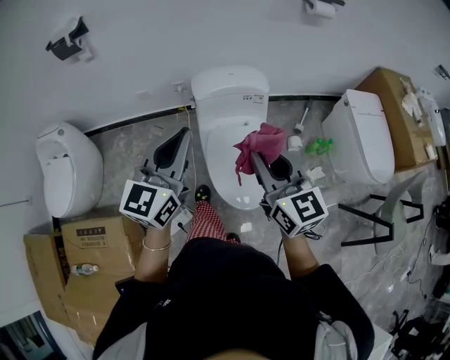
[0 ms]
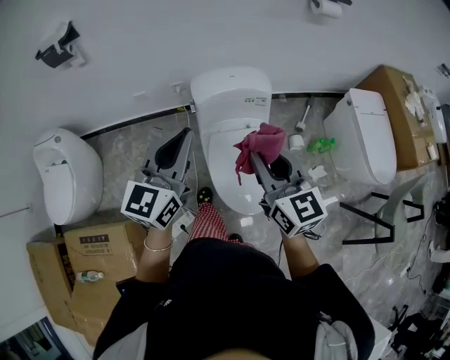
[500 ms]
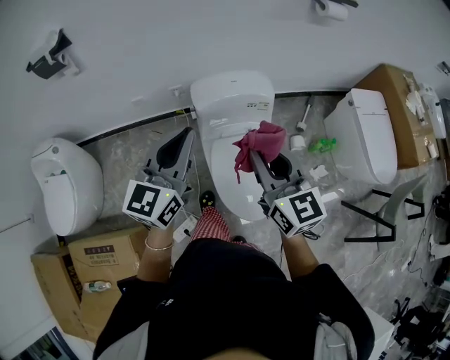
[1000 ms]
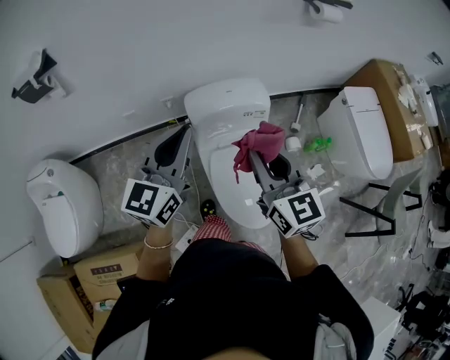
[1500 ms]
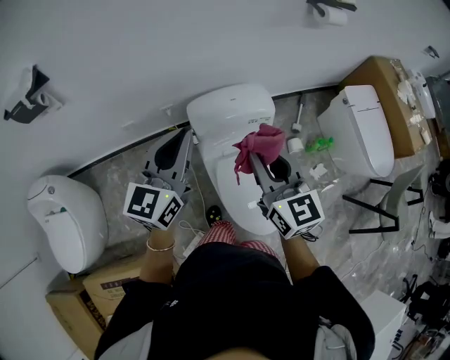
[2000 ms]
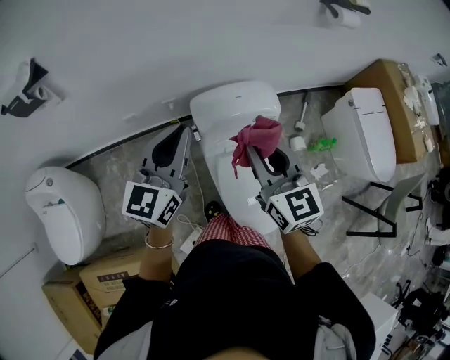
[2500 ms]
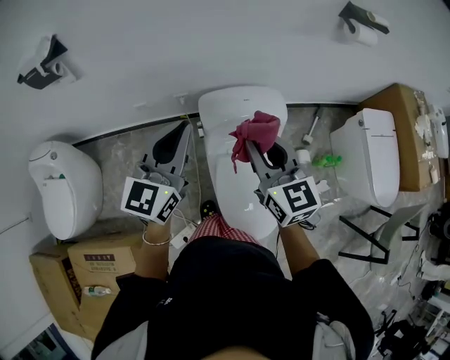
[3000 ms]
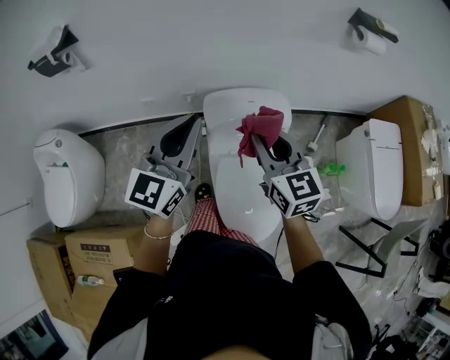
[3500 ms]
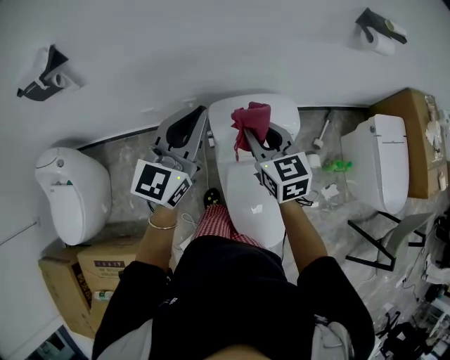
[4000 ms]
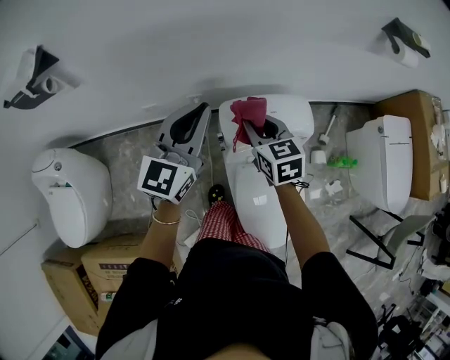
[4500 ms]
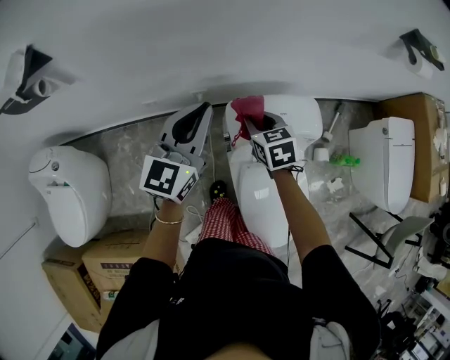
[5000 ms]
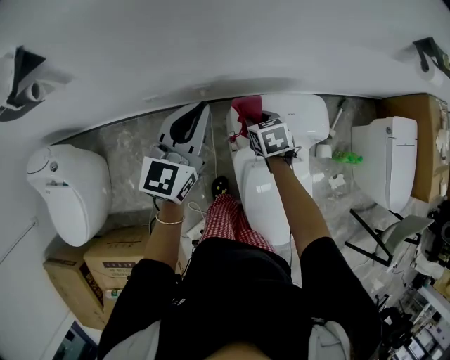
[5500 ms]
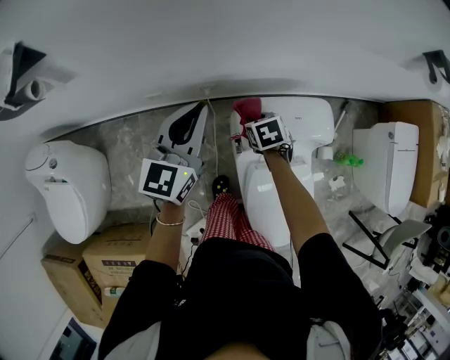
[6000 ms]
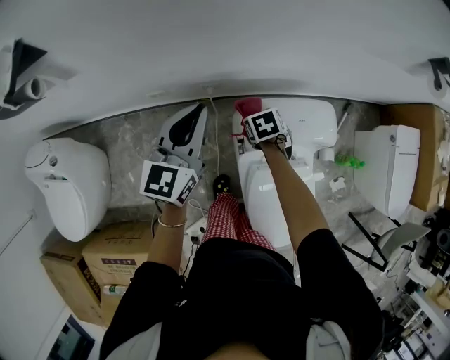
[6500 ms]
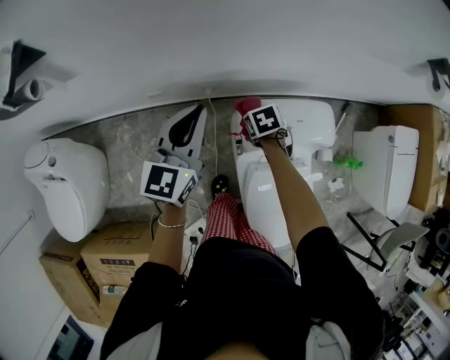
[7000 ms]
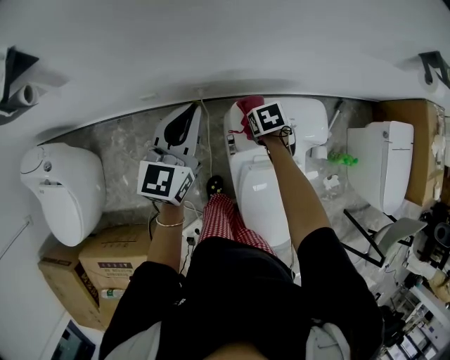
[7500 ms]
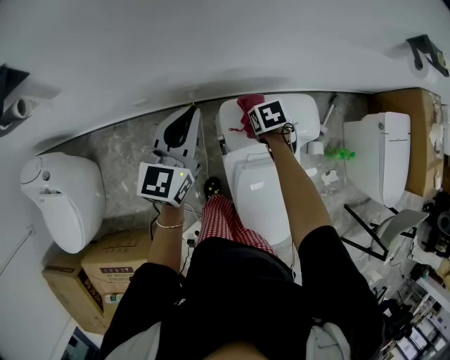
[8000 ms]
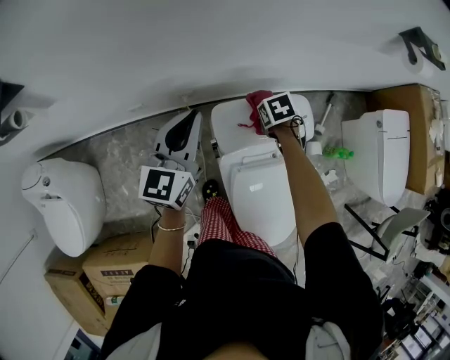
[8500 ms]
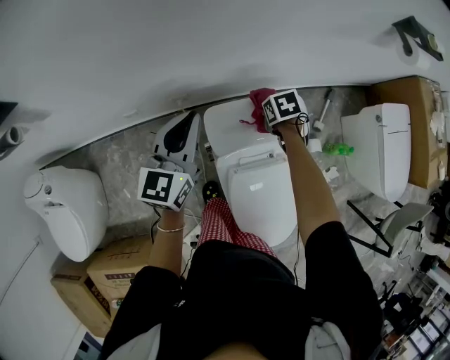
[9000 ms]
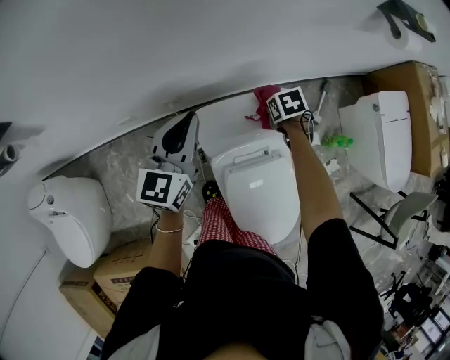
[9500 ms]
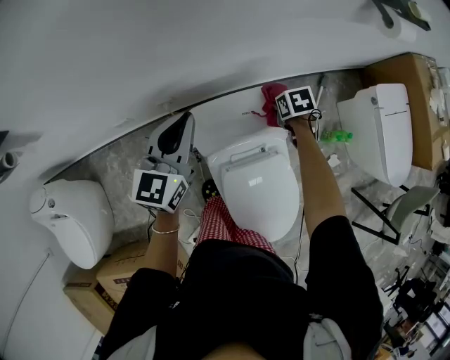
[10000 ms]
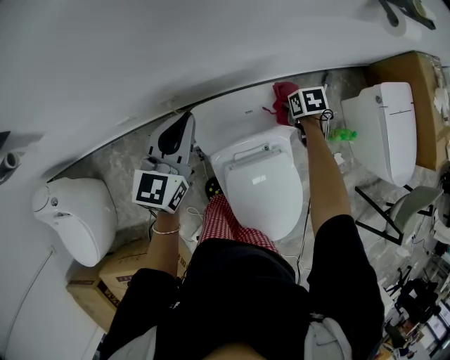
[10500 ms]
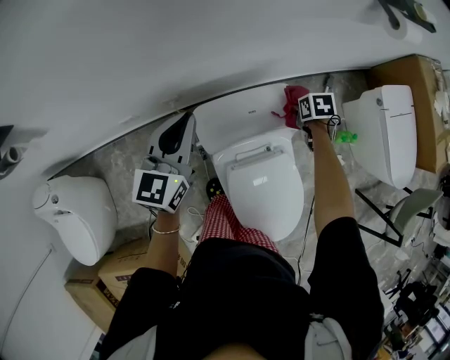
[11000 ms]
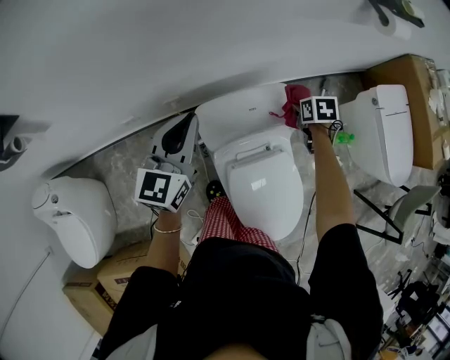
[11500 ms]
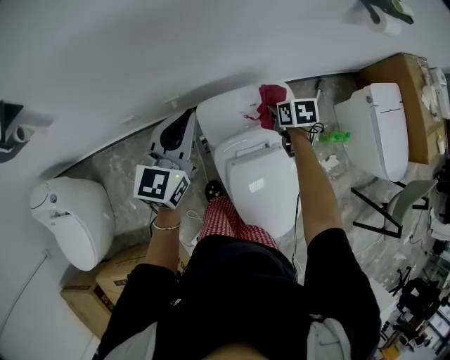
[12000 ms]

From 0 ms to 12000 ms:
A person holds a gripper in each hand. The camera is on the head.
From 0 ms to 2000 ms: The left gripper moves forward, roughly 20 cm. Meanwhile the right gripper moves forward and to the left, about 20 cm.
From 2000 ms to 4000 ms: The left gripper is displaced forward by some 10 cm; the right gripper shifts approximately 15 cm forward and downward.
From 4000 ms to 6000 ms: The right gripper travels downward and forward by about 30 cm, and angles its fingers downward, by some 40 degrees. Meanwhile the left gripper shifts approximately 20 cm downward, to the left and forward.
From 6000 ms to 8000 ms: The right gripper moves to the right, approximately 5 cm.
From 8000 ms to 10000 ms: The right gripper moves some 20 cm. Meanwhile the left gripper shifts by about 10 cm.
From 10000 ms to 12000 ms: The left gripper changes place by some 5 cm. The right gripper shifts about 10 cm upward and to the left.

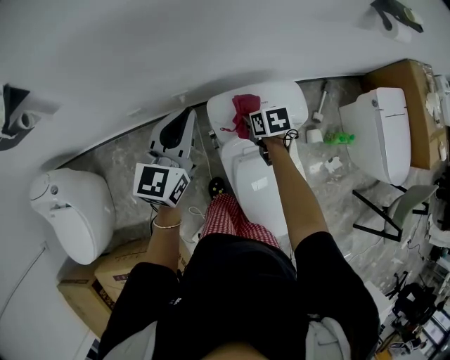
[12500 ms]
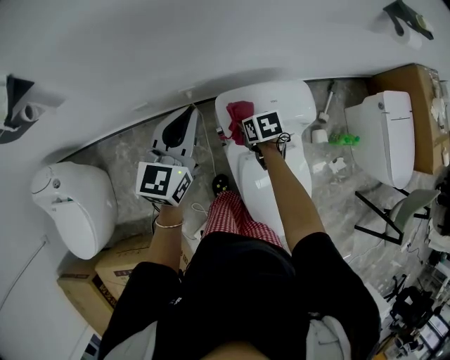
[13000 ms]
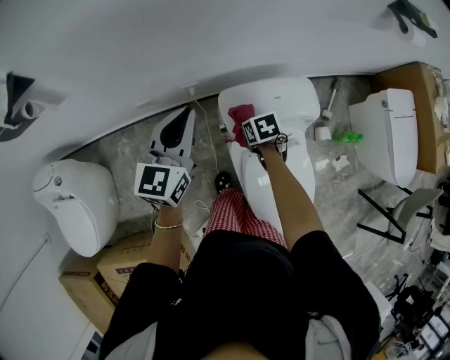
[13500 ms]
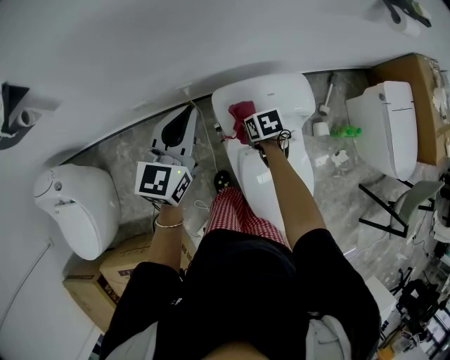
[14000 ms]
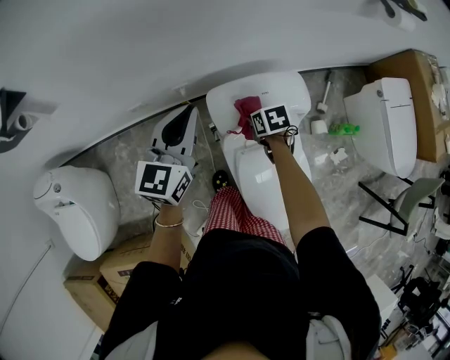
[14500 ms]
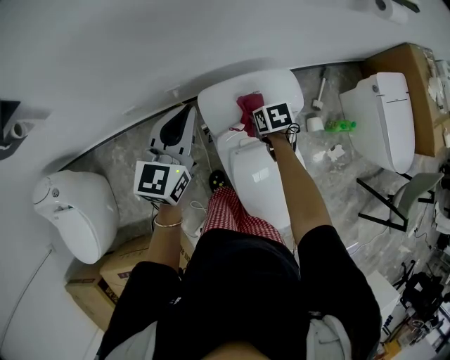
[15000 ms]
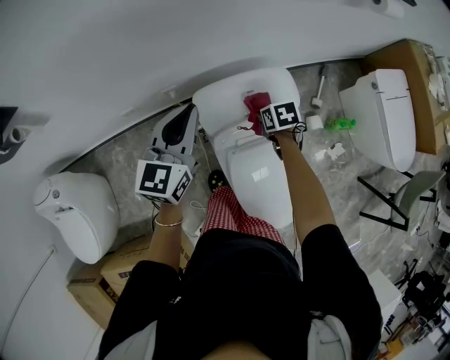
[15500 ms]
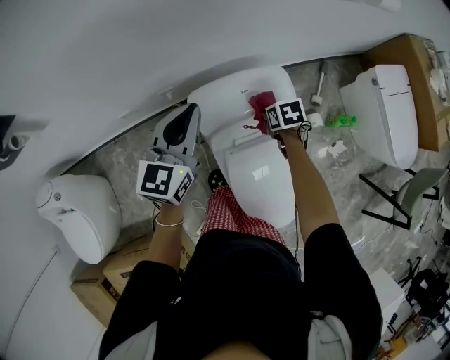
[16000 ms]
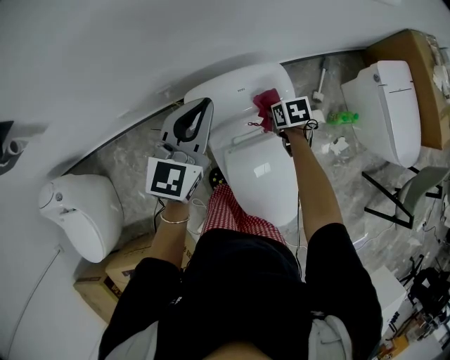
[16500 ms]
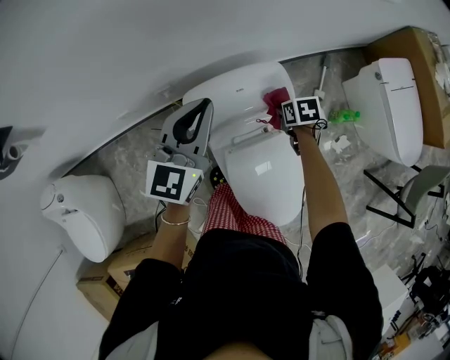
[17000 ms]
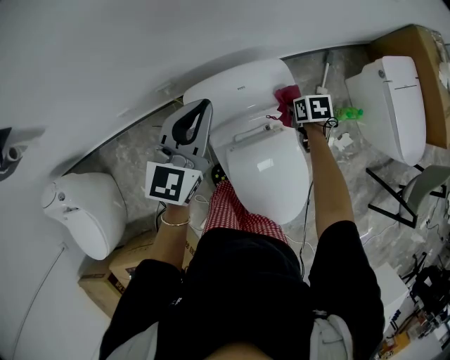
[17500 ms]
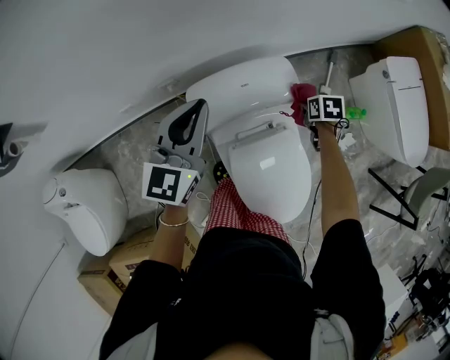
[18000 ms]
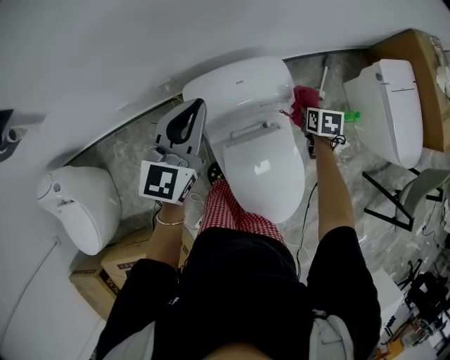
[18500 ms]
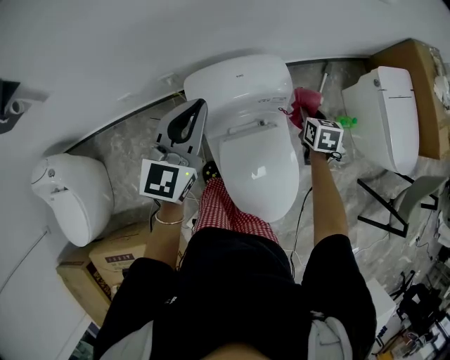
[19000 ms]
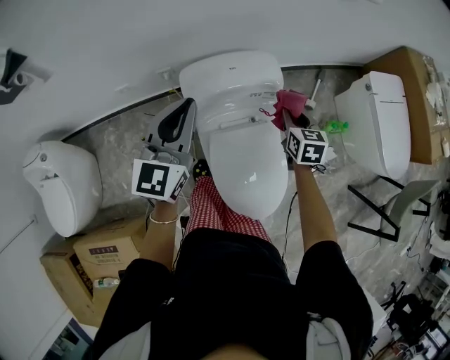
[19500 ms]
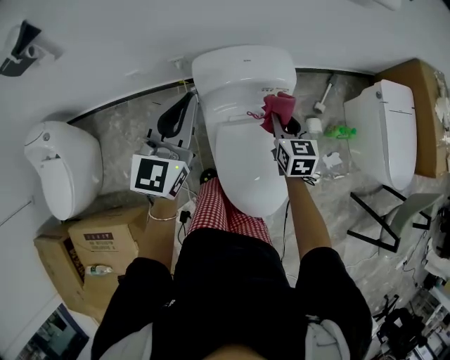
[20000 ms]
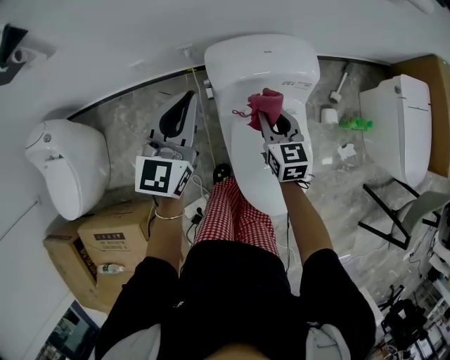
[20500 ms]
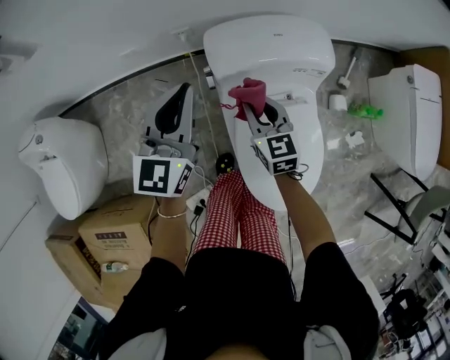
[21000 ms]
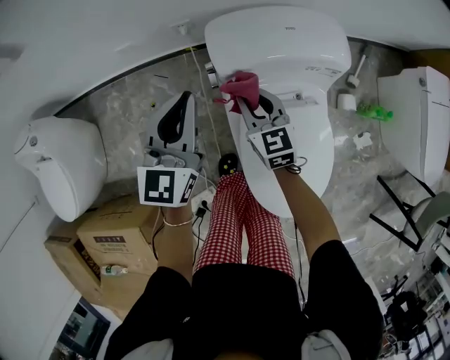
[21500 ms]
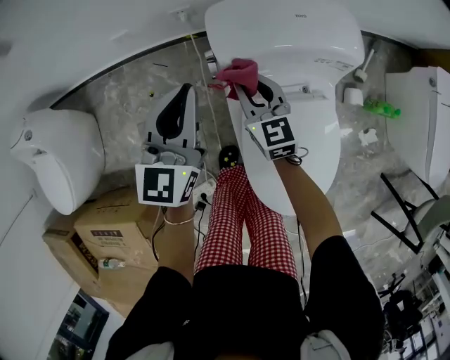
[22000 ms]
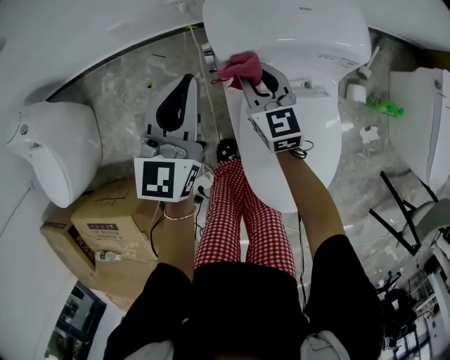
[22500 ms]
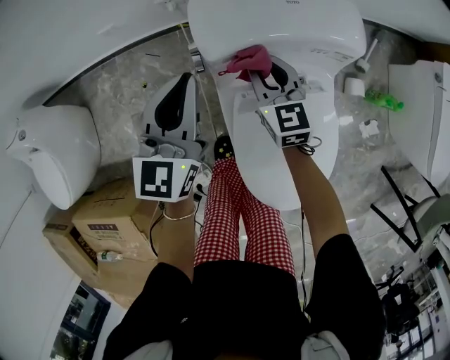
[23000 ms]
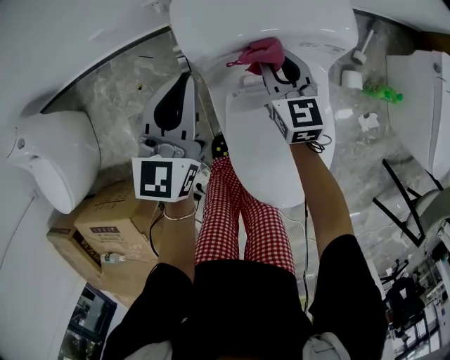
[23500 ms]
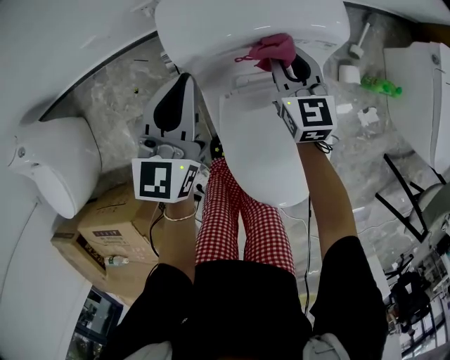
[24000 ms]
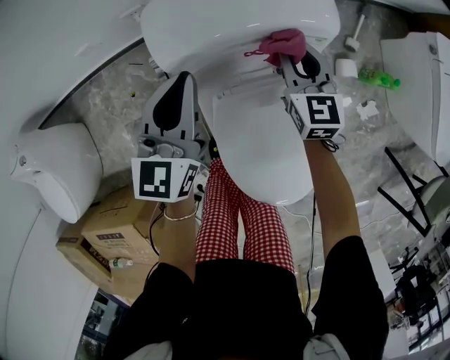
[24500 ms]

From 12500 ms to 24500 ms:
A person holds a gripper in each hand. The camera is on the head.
From 12500 ms to 14500 ms: The right gripper travels downward by roughly 5 cm.
From 14500 ms to 16500 ms: Both grippers move to the right, about 15 cm.
From 16500 ms to 18500 ms: The right gripper travels to the right by some 10 cm.
From 18500 ms to 20500 ms: The left gripper moves backward and to the left, roughly 15 cm; the right gripper is displaced to the left and backward by about 25 cm, and tilts its fingers approximately 30 degrees upward.
From 20500 ms to 22500 ms: The left gripper travels downward by roughly 15 cm, while the right gripper is displaced downward, to the left and forward by roughly 15 cm.
From 22500 ms to 24500 ms: The left gripper shifts some 10 cm to the right. The right gripper goes roughly 20 cm to the right.

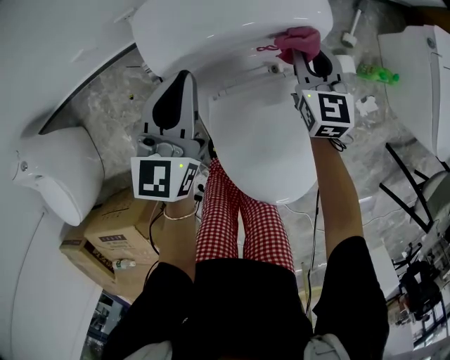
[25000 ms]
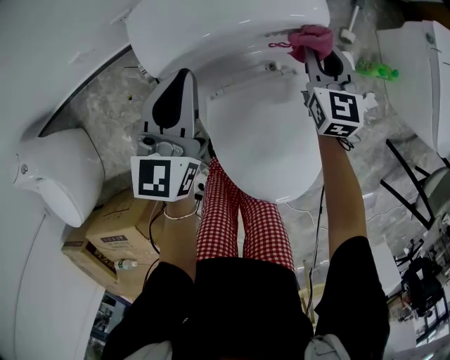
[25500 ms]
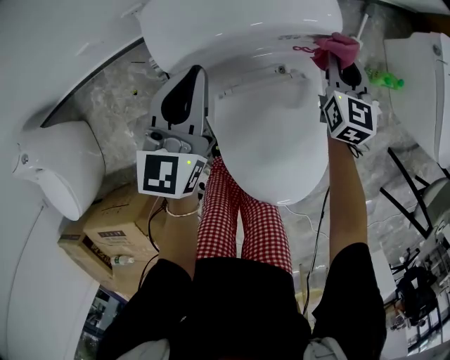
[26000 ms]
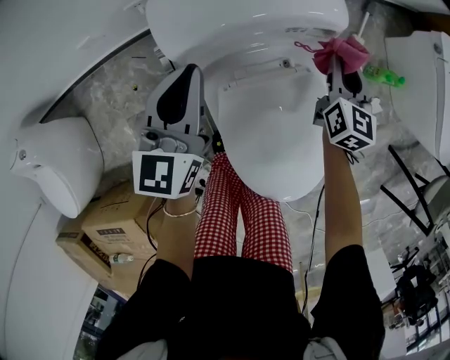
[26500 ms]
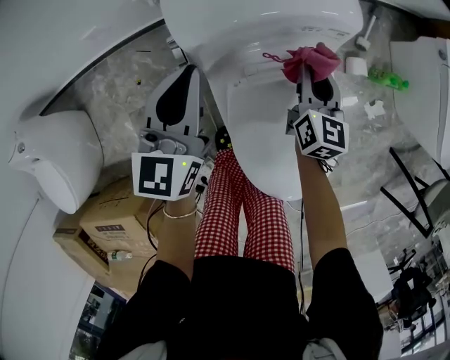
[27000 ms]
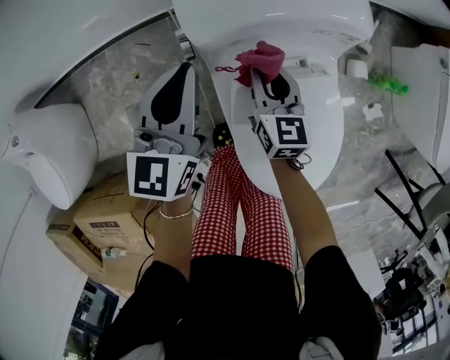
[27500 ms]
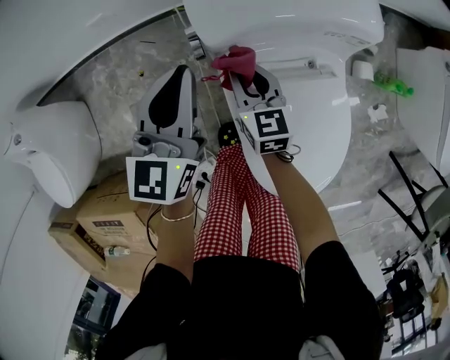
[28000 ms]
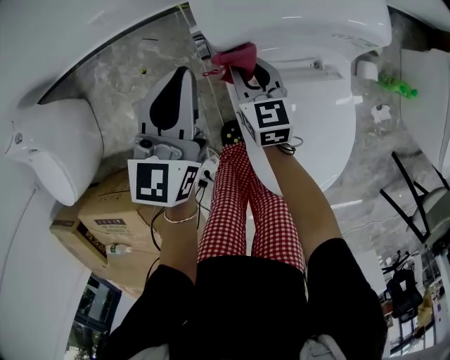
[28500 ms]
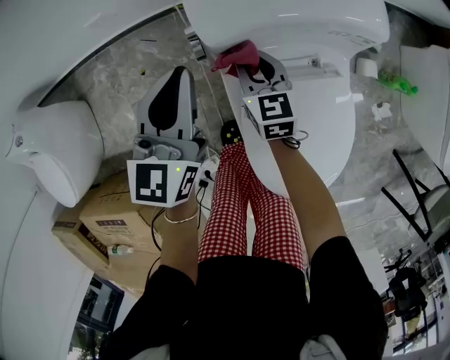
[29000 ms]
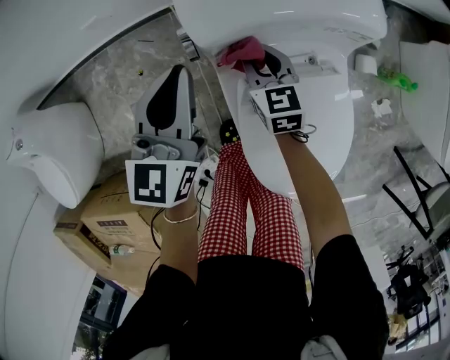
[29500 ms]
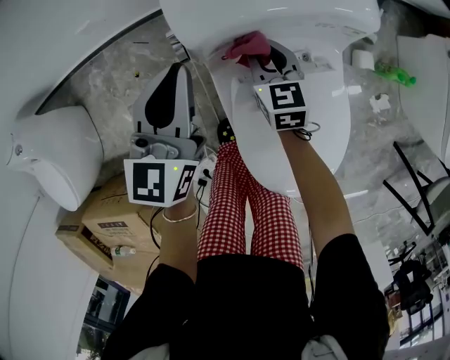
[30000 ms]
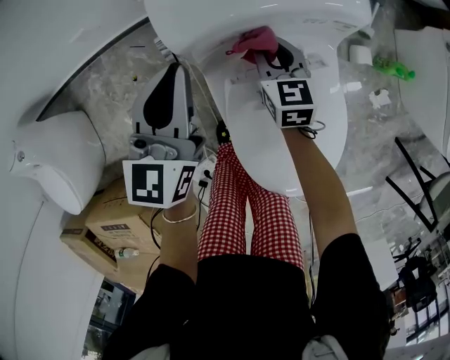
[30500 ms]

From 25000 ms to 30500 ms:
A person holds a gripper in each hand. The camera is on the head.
From 25000 ms to 27000 ms: The left gripper ends up about 5 cm from where it was. The right gripper shifts roughly 5 cm backward, and moves about 5 cm to the right and comes back.
From 27000 ms to 28500 ms: The left gripper goes roughly 5 cm to the left. The right gripper shifts roughly 20 cm to the left, and rotates about 30 degrees.
From 28500 ms to 30500 ms: The left gripper travels to the right by about 5 cm, while the right gripper travels to the right by some 10 cm.
